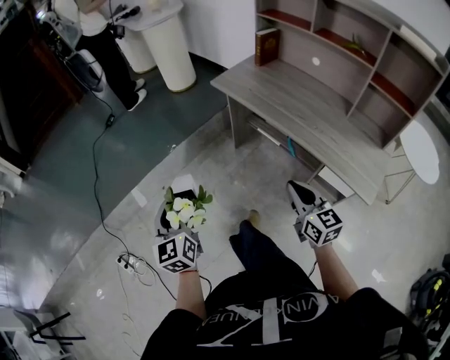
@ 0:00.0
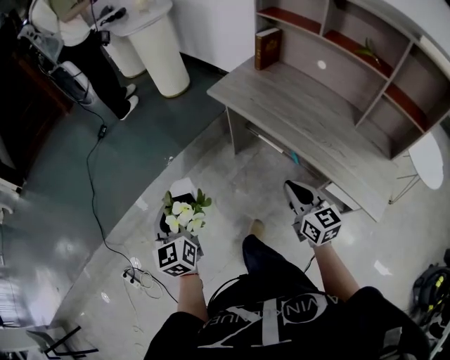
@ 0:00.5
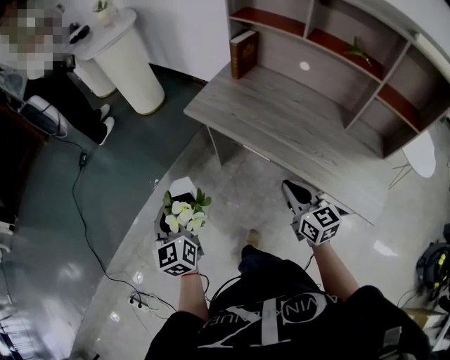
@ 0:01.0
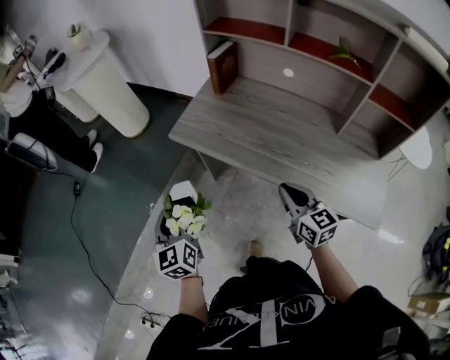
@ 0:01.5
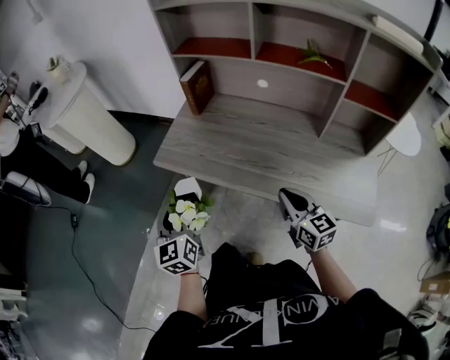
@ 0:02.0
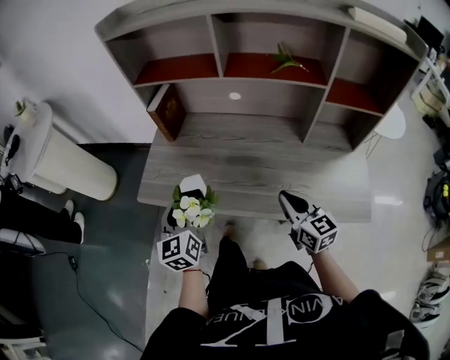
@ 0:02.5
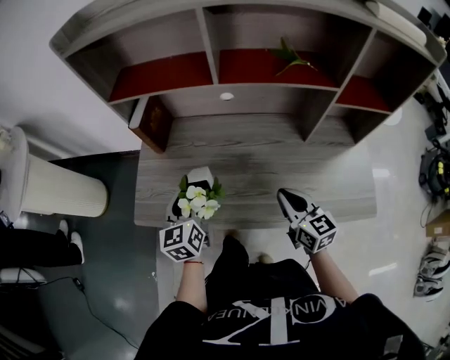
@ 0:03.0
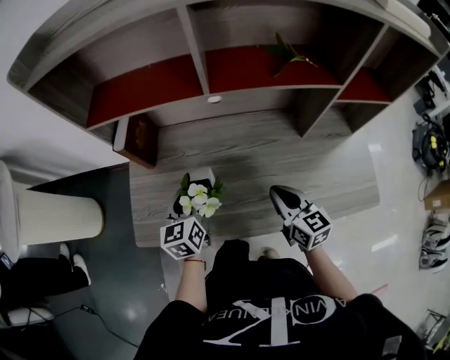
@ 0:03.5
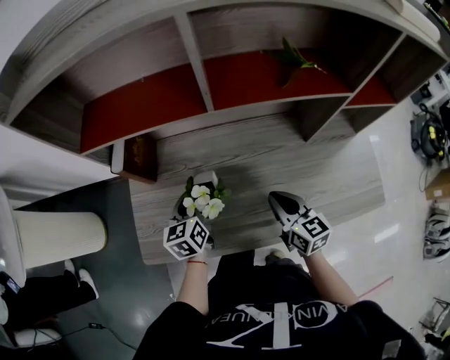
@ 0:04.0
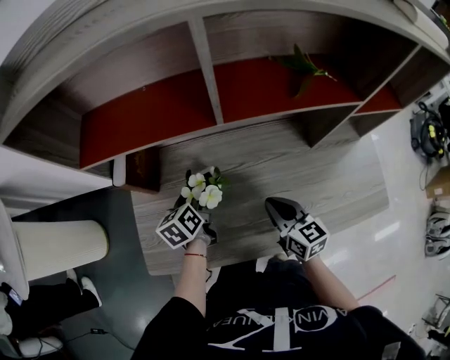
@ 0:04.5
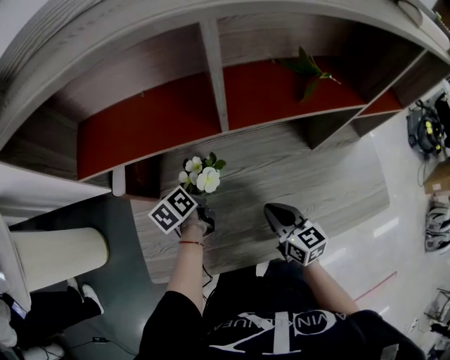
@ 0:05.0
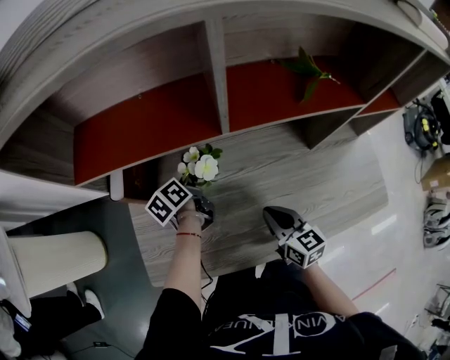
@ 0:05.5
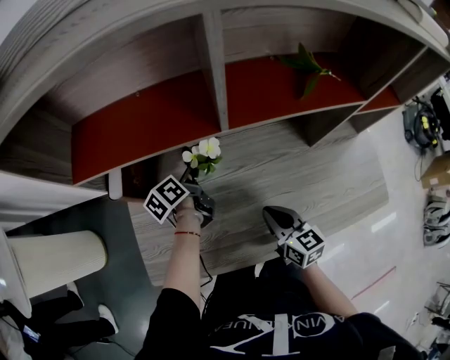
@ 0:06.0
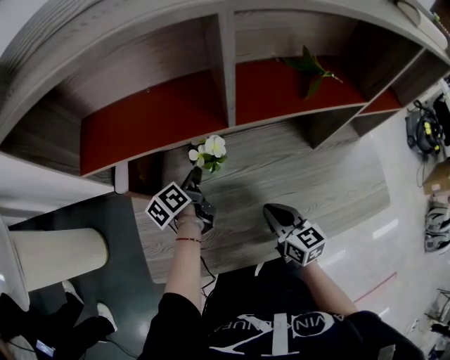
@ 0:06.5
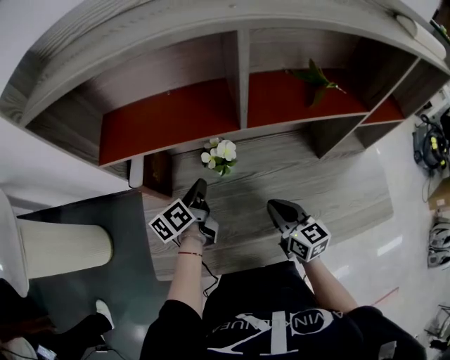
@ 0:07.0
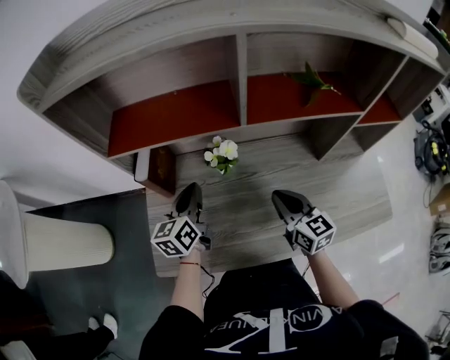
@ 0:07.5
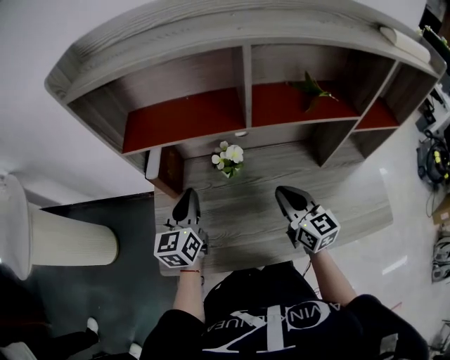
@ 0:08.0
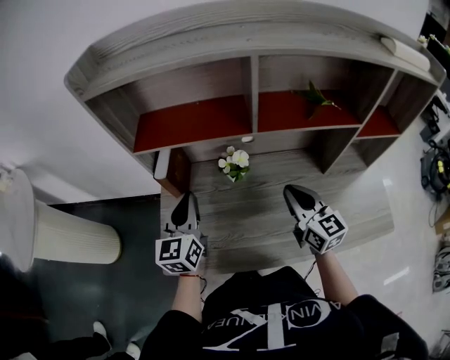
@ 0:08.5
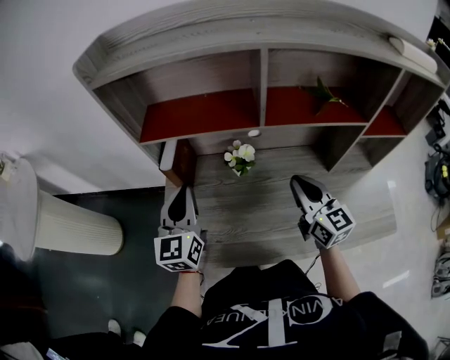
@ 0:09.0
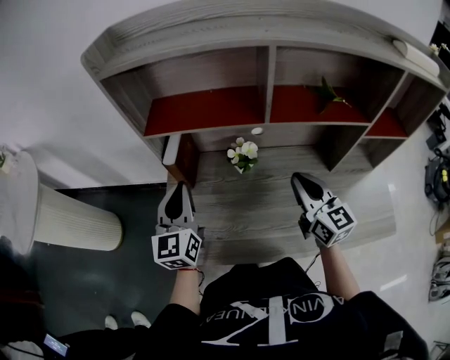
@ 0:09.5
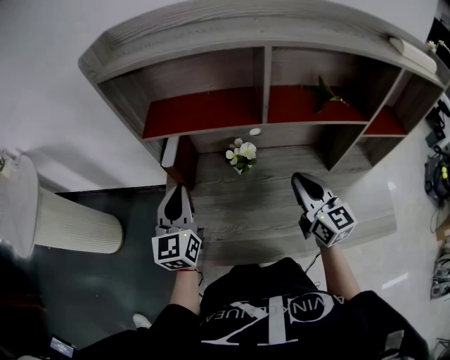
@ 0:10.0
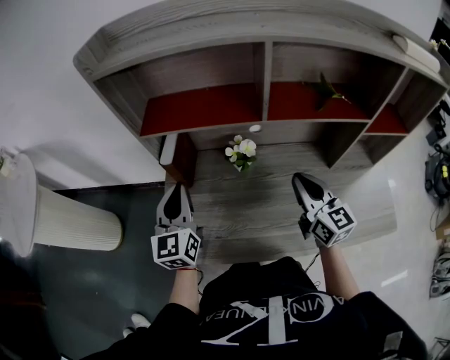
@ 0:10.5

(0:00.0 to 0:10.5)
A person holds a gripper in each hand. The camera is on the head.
0:00.0 - 0:02.0: The left gripper travels forward and to the right by some 40 cm, and rotates about 30 degrees; the right gripper moves forward and to the right, some 25 cm, and swivels about 20 degrees.
0:02.0 - 0:04.0: The right gripper changes place by some 20 cm, and rotates approximately 30 degrees. Meanwhile the left gripper changes place by some 40 cm, and changes its angle by some 40 degrees.
0:04.0 - 0:06.5: The left gripper travels forward by roughly 10 cm, and rotates about 40 degrees. The right gripper ends up some 5 cm from where it was.
0:06.5 - 0:08.5: The right gripper is displaced upward by approximately 15 cm, while the left gripper heads upward and backward, covering some 20 cm, and twists about 50 degrees clockwise, seen from behind.
0:08.5 - 0:10.5: The grippers move only a little.

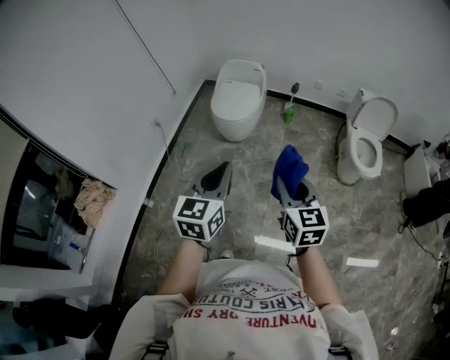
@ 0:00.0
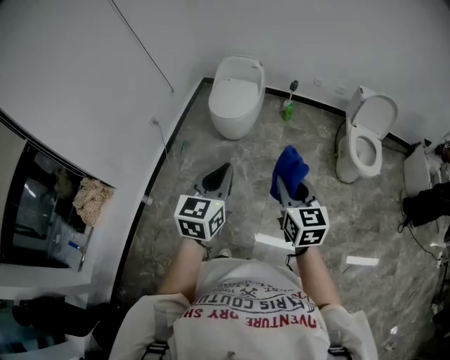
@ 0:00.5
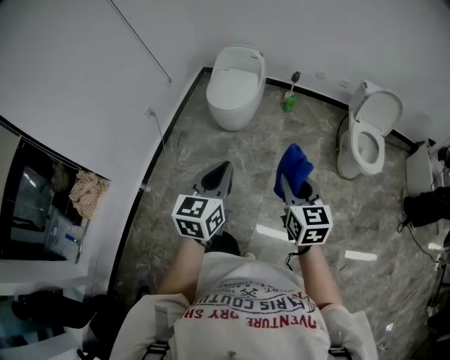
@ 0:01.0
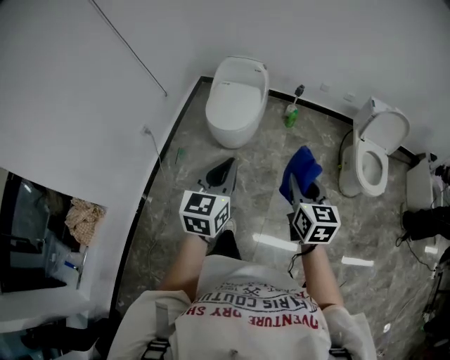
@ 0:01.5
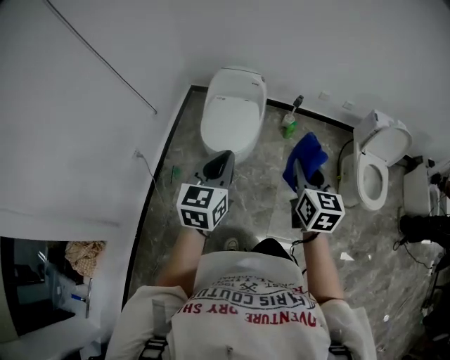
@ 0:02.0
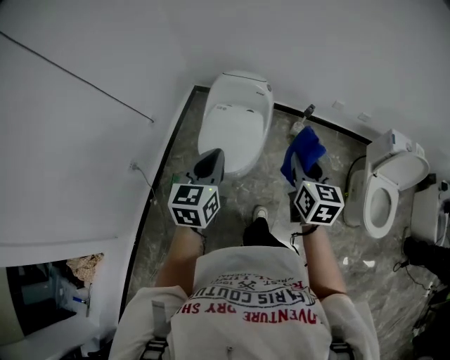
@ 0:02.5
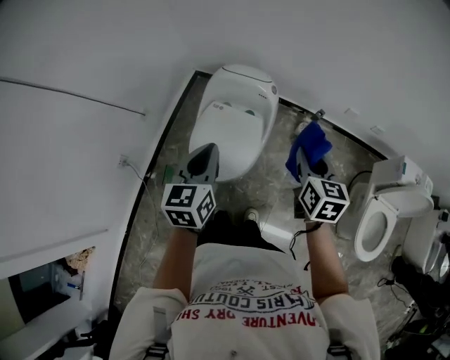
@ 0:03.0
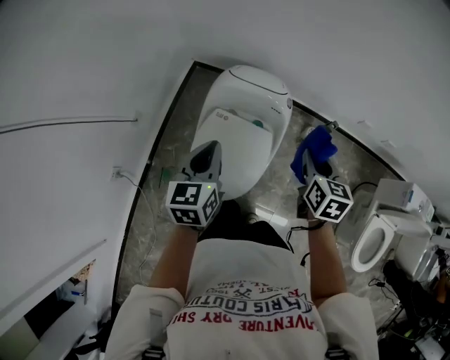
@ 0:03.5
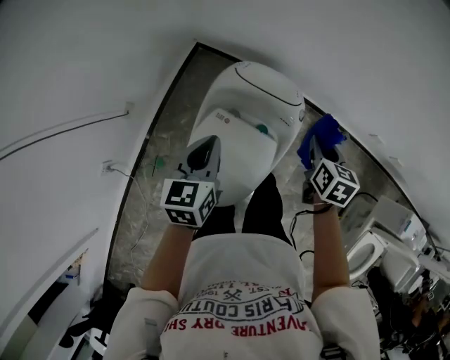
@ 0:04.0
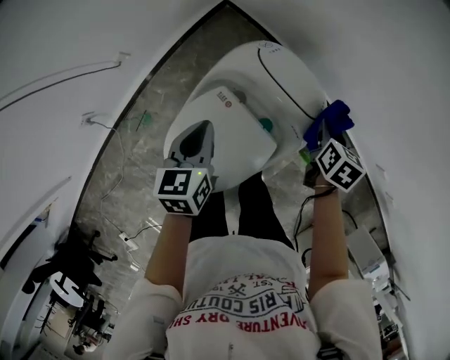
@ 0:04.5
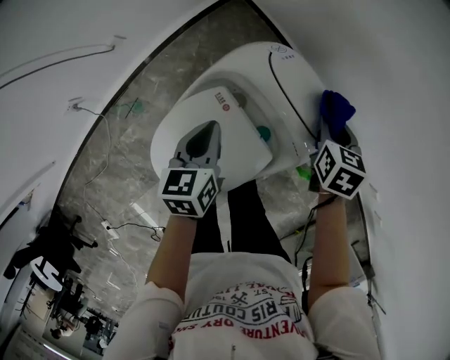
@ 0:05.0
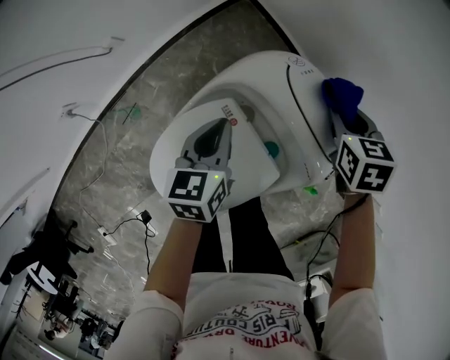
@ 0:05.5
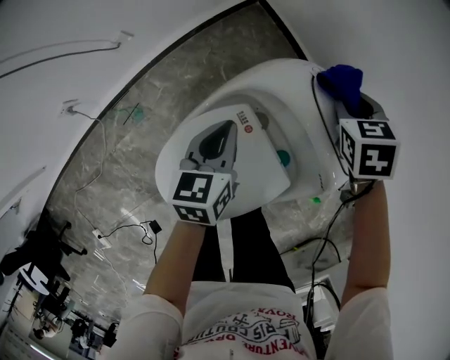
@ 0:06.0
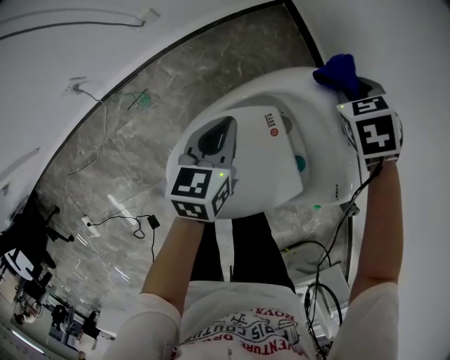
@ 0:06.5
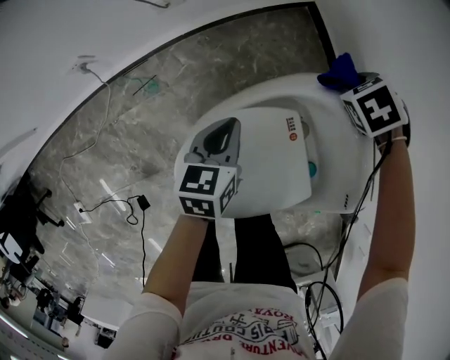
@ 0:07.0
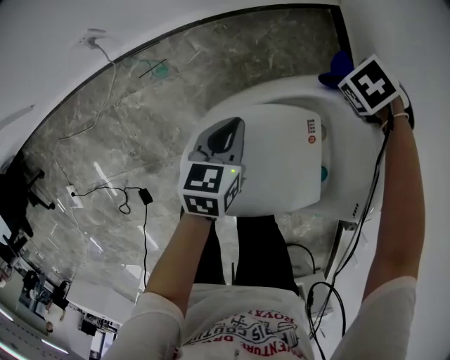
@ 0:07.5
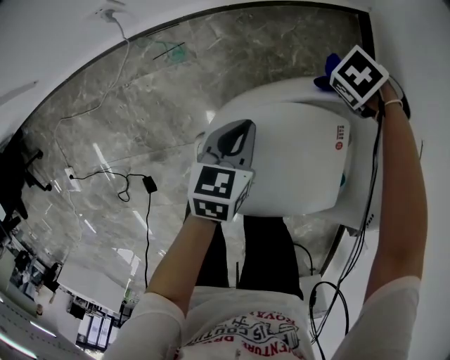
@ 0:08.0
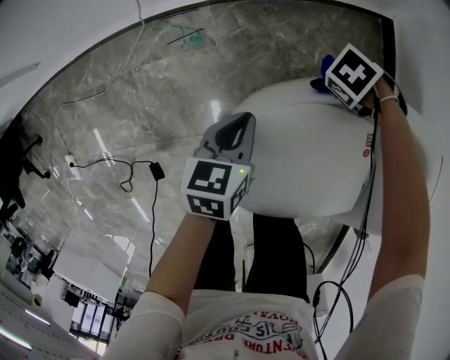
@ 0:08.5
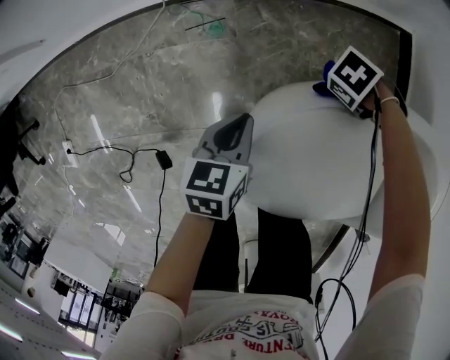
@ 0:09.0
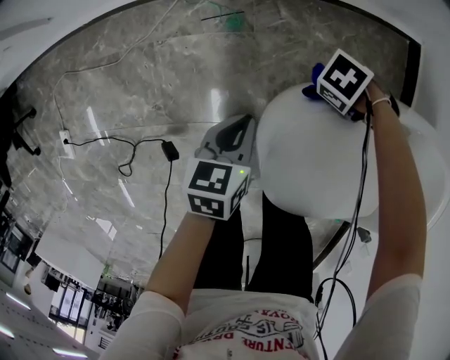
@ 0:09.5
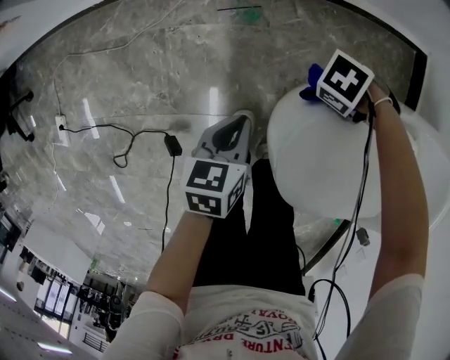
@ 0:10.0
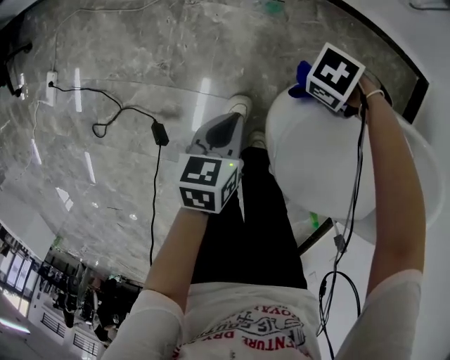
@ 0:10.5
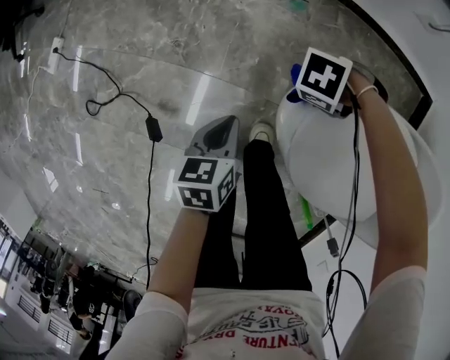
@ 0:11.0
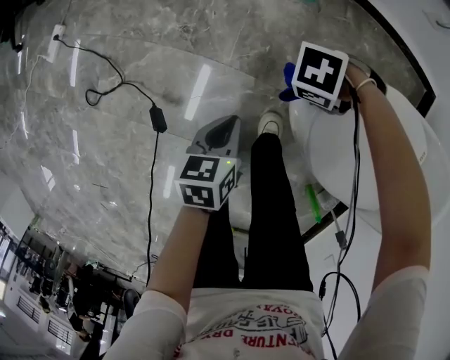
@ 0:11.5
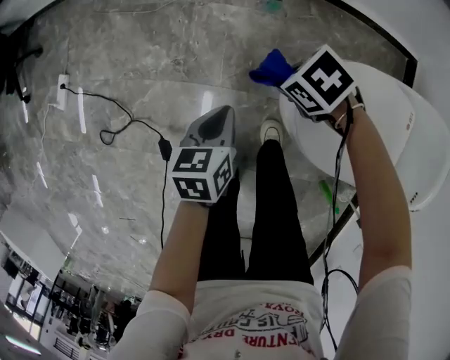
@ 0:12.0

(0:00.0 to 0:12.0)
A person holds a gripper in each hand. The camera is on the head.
0:00.0 - 0:02.0: Both grippers are carried forward, approximately 40 cm.
0:02.0 - 0:04.0: The pair of grippers is taken forward, roughly 70 cm. The right gripper changes its angle by approximately 30 degrees. The left gripper turns by approximately 30 degrees.
0:04.0 - 0:06.0: The right gripper changes place by roughly 35 cm, and rolls counterclockwise, seen from behind, by some 60 degrees, while the left gripper heads downward, covering about 25 cm, and changes its angle by roughly 30 degrees.
0:06.0 - 0:08.0: The right gripper changes place by roughly 35 cm, and swivels about 70 degrees. Meanwhile the left gripper changes place by approximately 25 cm.
0:08.0 - 0:10.0: The left gripper moves roughly 30 cm; the right gripper changes place by approximately 35 cm, and rotates roughly 20 degrees.
0:10.0 - 0:12.0: The right gripper changes place by approximately 25 cm, and changes its angle by some 20 degrees. Meanwhile the left gripper changes place by roughly 20 cm.

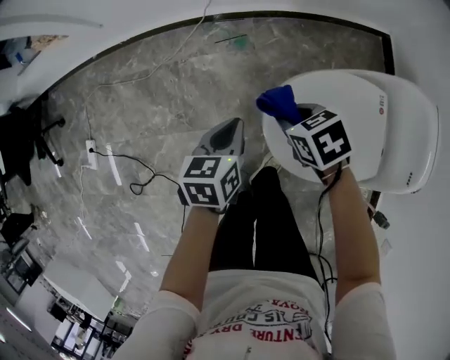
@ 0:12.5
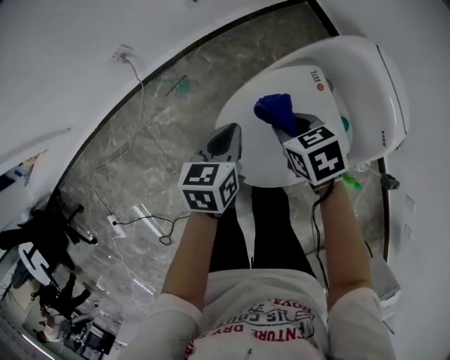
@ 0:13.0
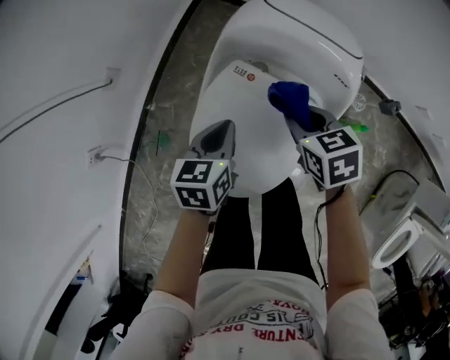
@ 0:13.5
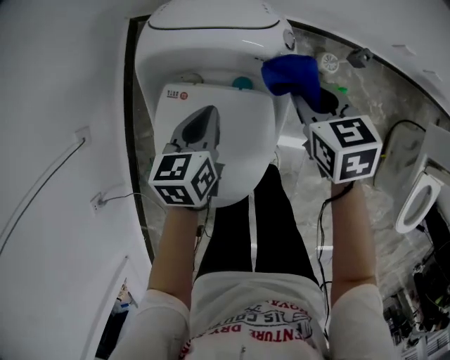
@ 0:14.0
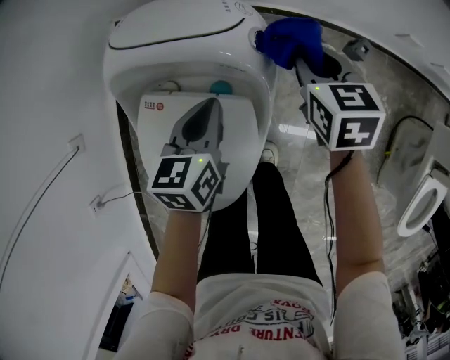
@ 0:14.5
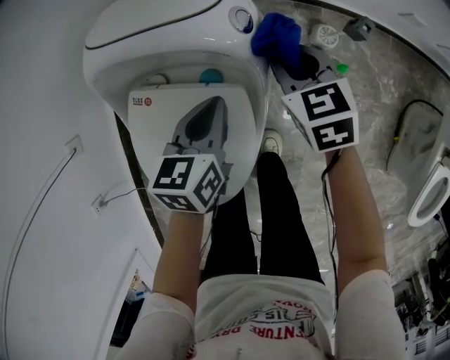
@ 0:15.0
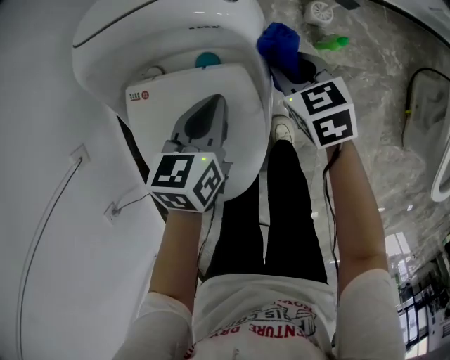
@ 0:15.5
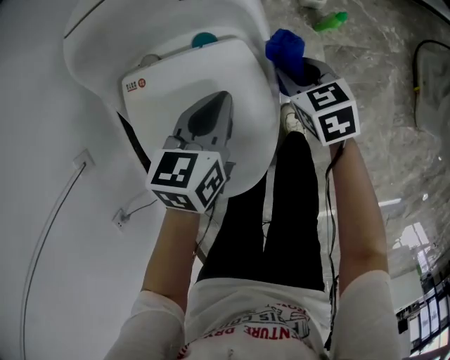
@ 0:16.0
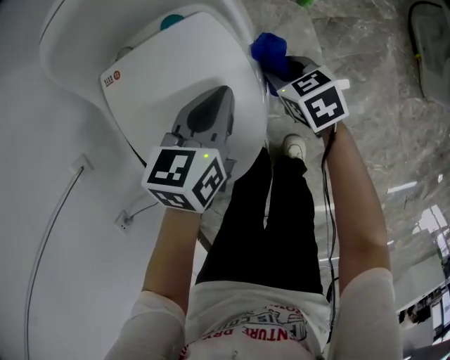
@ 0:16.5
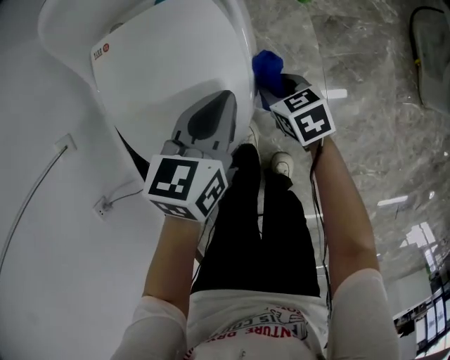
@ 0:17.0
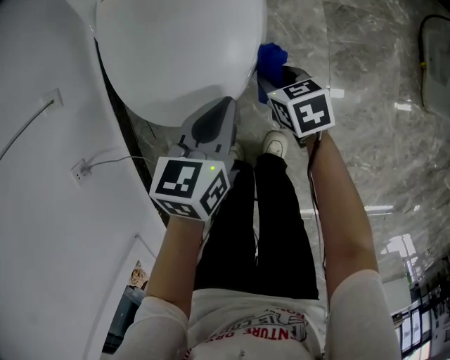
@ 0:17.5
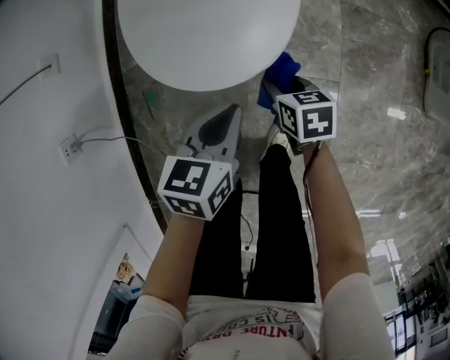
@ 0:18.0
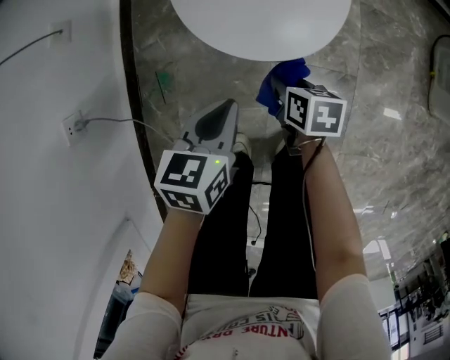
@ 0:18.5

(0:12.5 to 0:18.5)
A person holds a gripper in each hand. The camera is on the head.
0:12.5 - 0:14.5: The pair of grippers is taken about 60 cm. The right gripper rotates about 100 degrees, while the left gripper rotates approximately 80 degrees.
0:14.5 - 0:16.5: The left gripper heads backward, covering some 20 cm, and changes its angle by about 30 degrees. The right gripper is displaced backward and downward by about 35 cm.
0:16.5 - 0:18.5: Both grippers travel together backward and to the left, about 35 cm.
